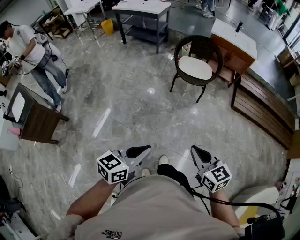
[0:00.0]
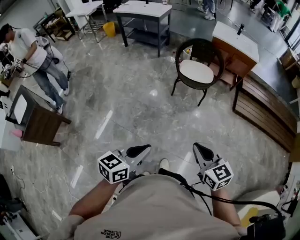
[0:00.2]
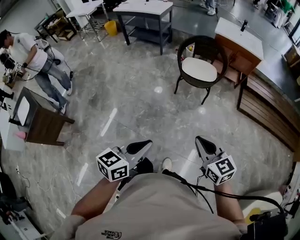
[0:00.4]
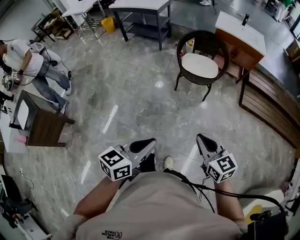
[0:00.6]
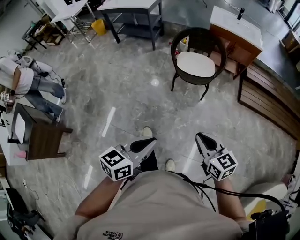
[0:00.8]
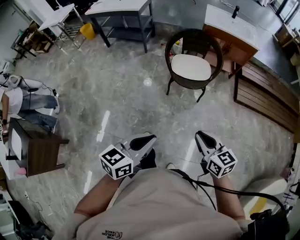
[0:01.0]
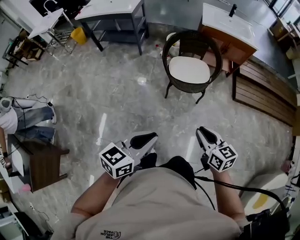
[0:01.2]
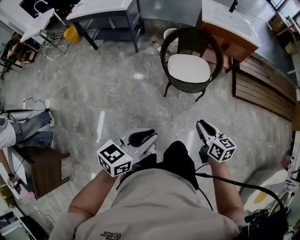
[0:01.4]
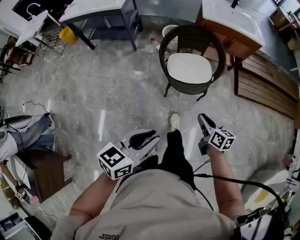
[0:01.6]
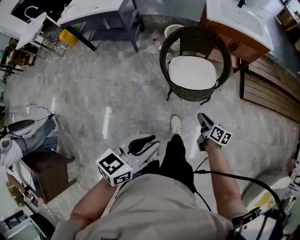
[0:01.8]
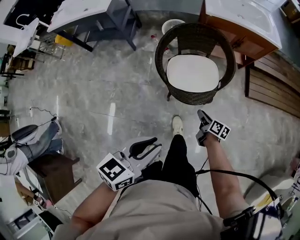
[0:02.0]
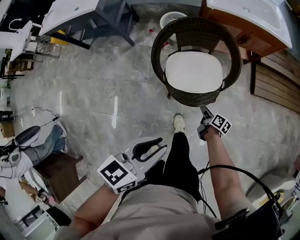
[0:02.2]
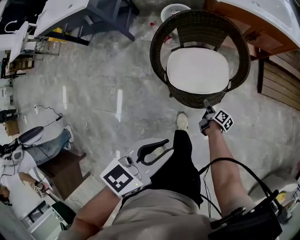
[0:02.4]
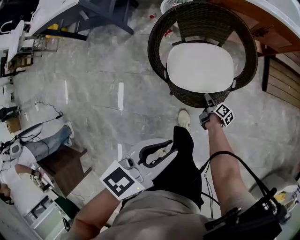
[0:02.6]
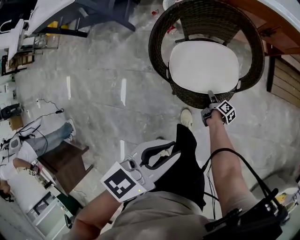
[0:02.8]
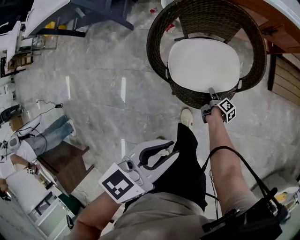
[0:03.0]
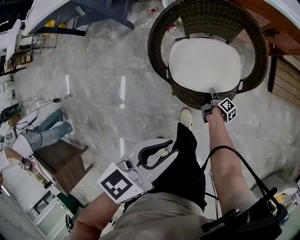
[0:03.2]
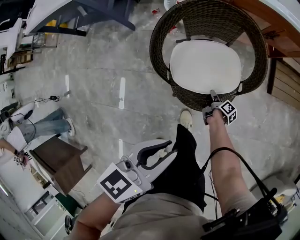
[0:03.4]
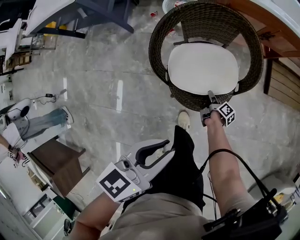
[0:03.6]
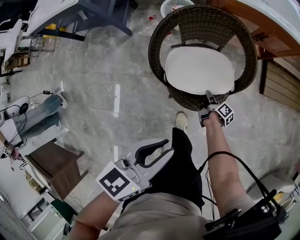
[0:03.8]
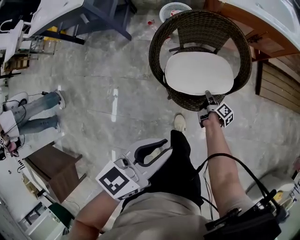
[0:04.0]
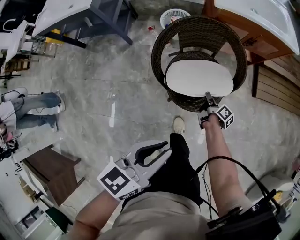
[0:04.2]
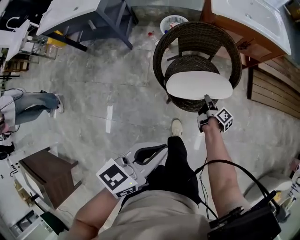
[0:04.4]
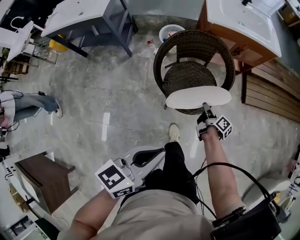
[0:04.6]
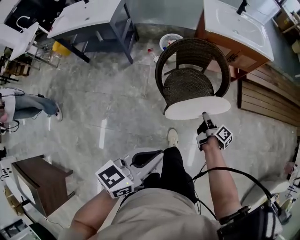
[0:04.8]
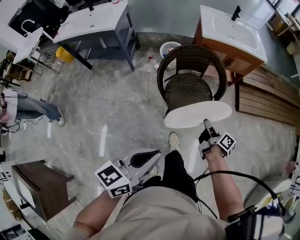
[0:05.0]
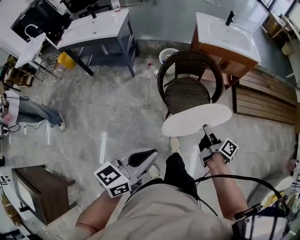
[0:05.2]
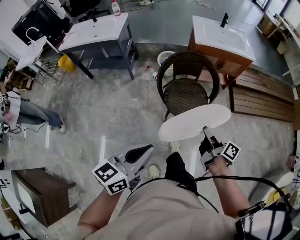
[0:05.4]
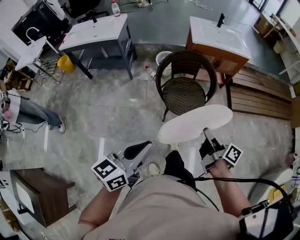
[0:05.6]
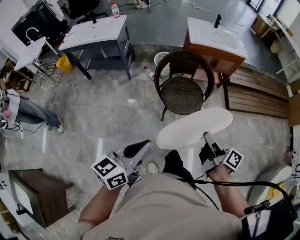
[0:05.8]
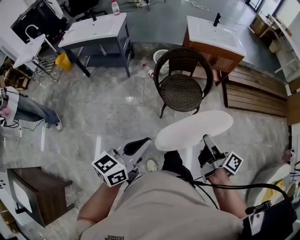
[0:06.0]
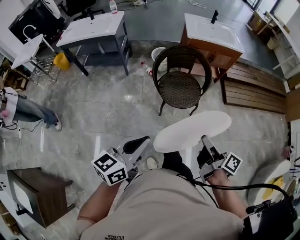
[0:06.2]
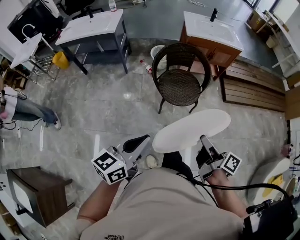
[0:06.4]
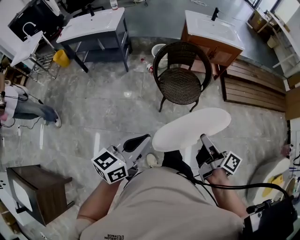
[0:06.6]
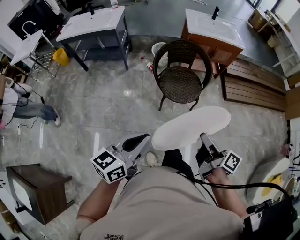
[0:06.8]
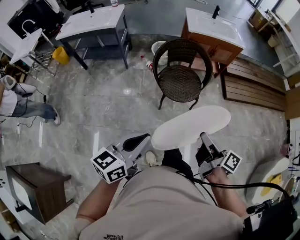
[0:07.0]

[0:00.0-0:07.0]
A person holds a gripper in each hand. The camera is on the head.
0:00.0 to 0:01.4: Both grippers are carried forward, some 40 cm. The right gripper turns by approximately 30 degrees.
0:01.4 to 0:02.8: The right gripper is displaced downward and forward by roughly 70 cm, rolls clockwise, seen from behind, by some 70 degrees, and opens, while the left gripper is displaced forward and downward by some 40 cm.
0:02.8 to 0:04.2: The right gripper heads upward, covering roughly 15 cm, and closes up, while the left gripper is displaced upward by some 5 cm.
0:04.2 to 0:05.6: The right gripper moves upward and backward, roughly 50 cm, and rotates roughly 20 degrees. Meanwhile the left gripper shifts roughly 30 cm backward and upward.
0:05.6 to 0:07.0: The right gripper moves backward, some 10 cm. The left gripper moves backward, about 5 cm.

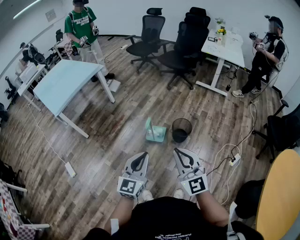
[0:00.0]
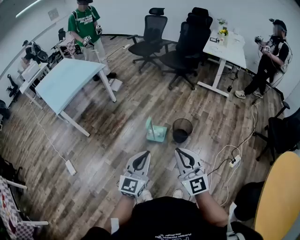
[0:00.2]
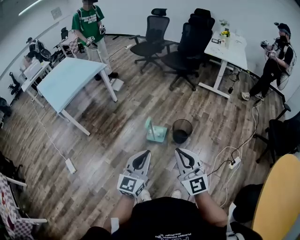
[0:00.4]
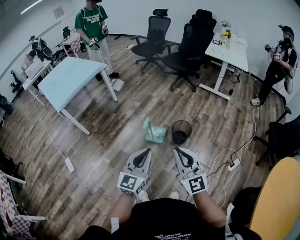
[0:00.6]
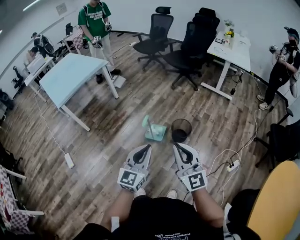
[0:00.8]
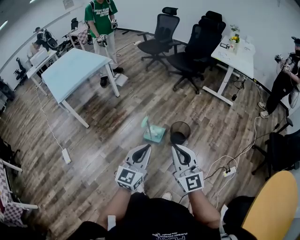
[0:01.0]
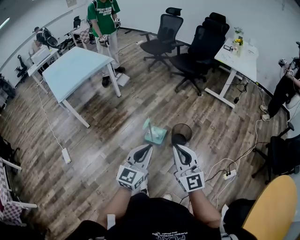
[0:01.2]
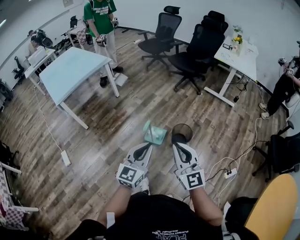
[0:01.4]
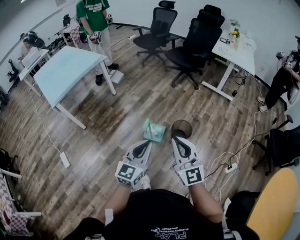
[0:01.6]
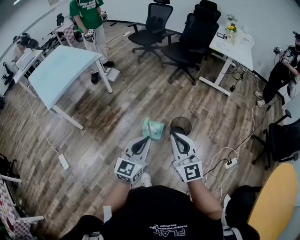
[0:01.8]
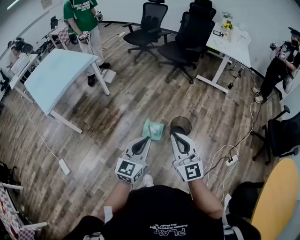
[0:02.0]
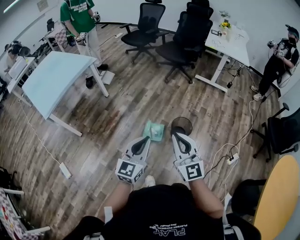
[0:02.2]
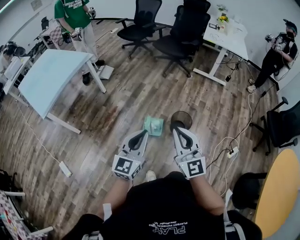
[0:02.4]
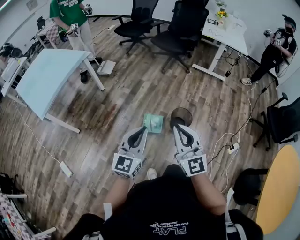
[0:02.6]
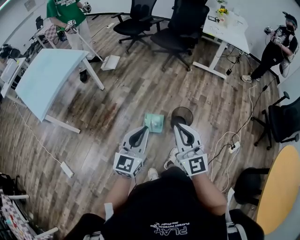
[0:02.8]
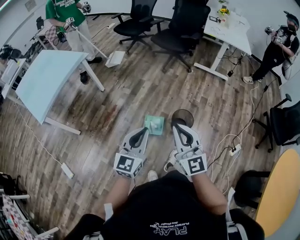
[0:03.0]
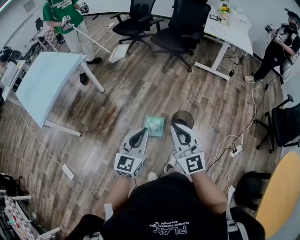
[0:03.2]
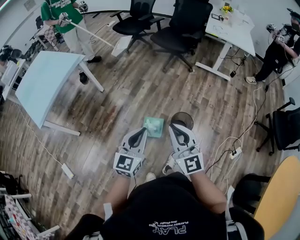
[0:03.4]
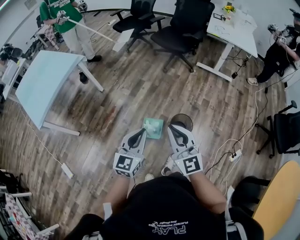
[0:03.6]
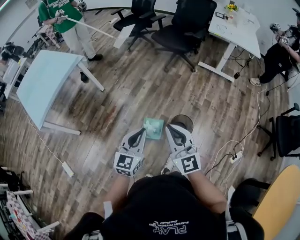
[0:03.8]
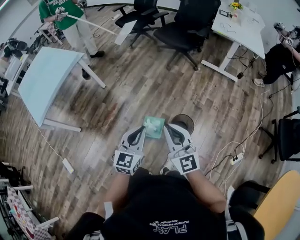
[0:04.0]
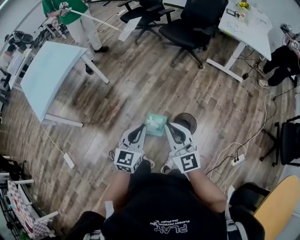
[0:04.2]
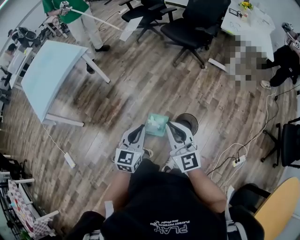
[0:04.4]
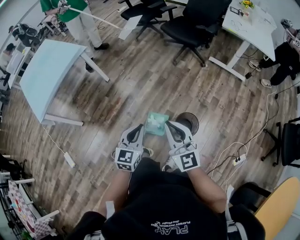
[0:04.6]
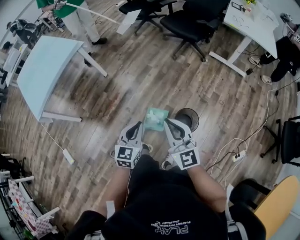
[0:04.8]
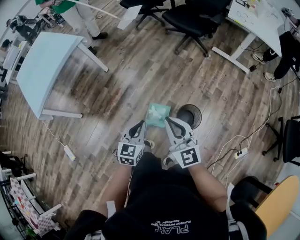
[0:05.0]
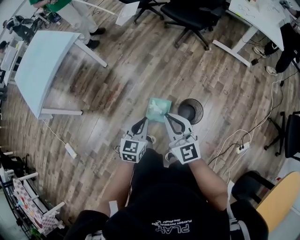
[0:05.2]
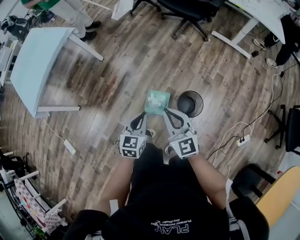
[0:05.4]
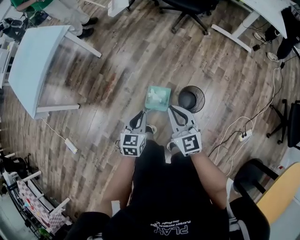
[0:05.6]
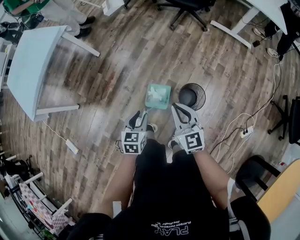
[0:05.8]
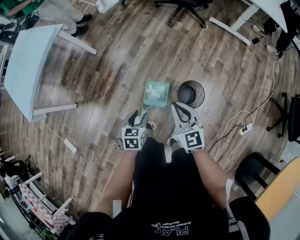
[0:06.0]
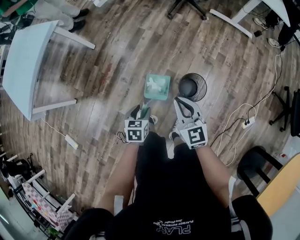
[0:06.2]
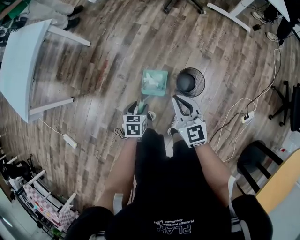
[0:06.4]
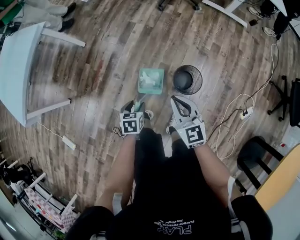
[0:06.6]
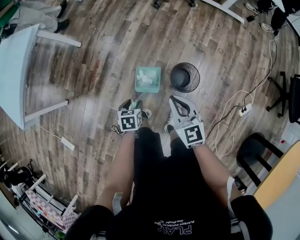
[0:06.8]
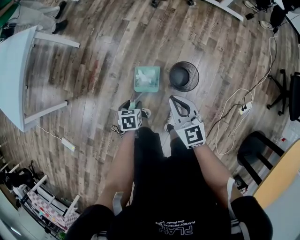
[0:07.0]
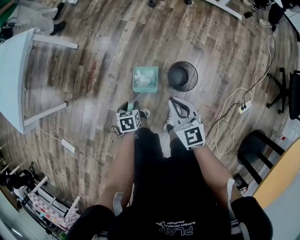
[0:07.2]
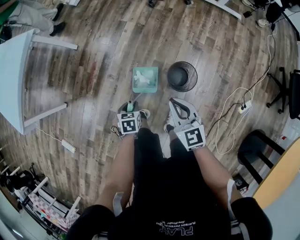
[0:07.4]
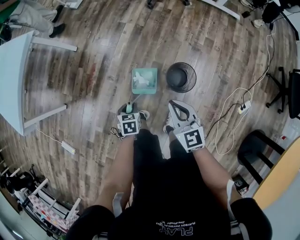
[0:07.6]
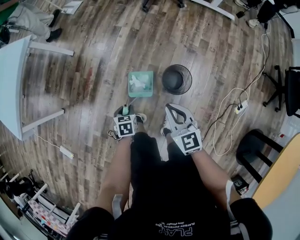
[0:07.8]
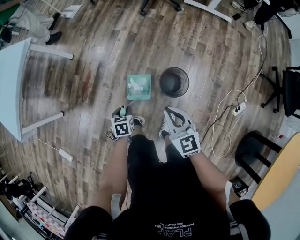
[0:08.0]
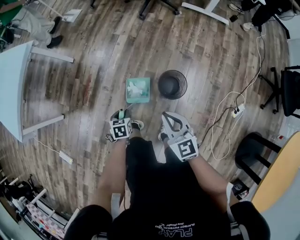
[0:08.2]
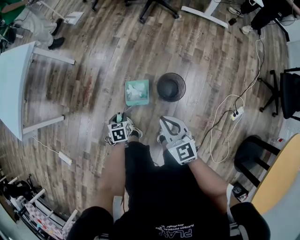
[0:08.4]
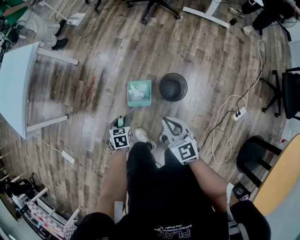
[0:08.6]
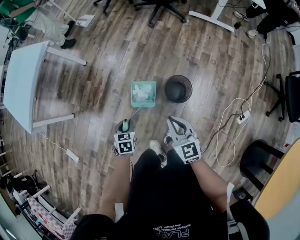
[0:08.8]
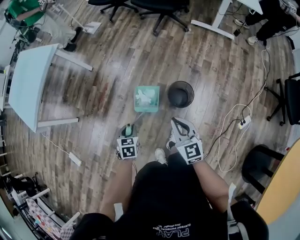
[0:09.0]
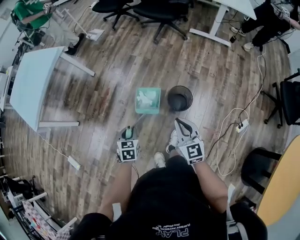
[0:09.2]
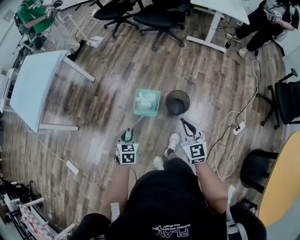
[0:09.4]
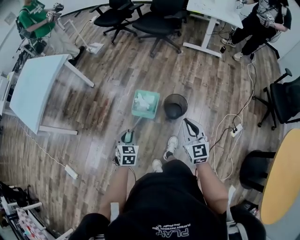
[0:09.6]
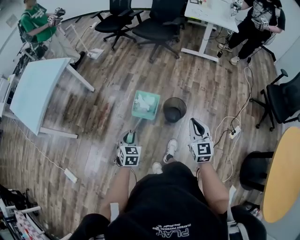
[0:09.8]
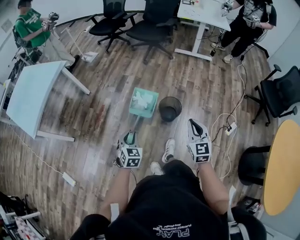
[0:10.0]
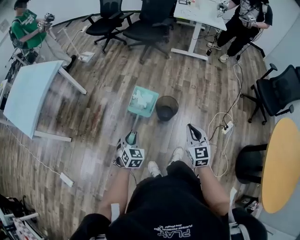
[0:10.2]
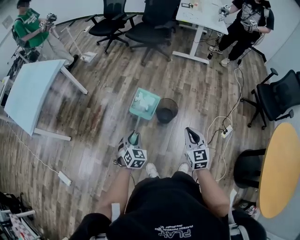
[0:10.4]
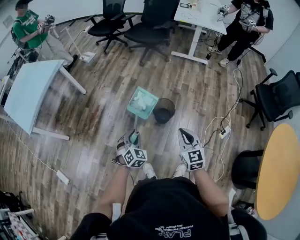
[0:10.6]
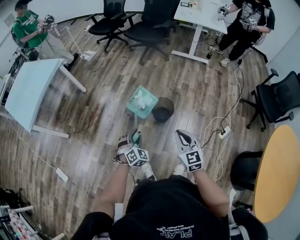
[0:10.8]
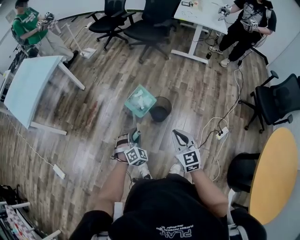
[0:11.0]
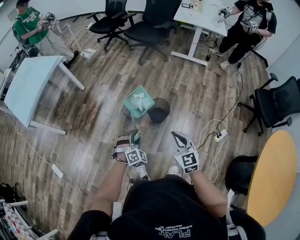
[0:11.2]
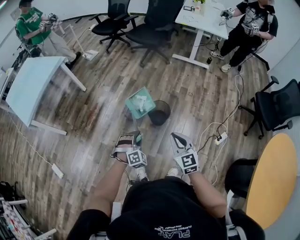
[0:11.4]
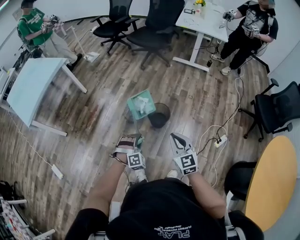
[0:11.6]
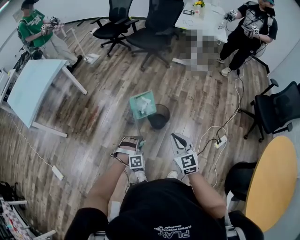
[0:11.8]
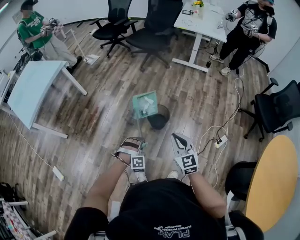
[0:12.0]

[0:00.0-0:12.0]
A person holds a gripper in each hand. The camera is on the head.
0:00.0 to 0:01.6: The two grippers go about 10 cm forward.
0:01.6 to 0:03.0: The grippers both shift forward and to the left by about 15 cm.
0:03.0 to 0:04.4: The right gripper heads forward, covering about 15 cm. The left gripper moves forward and downward, roughly 20 cm.
0:04.4 to 0:06.0: Both grippers move downward, approximately 20 cm. The left gripper angles its fingers downward, by about 30 degrees, and opens its fingers; the right gripper rotates approximately 20 degrees.
0:06.0 to 0:07.6: The right gripper goes about 5 cm downward; the left gripper travels downward by some 10 cm.
0:07.6 to 0:09.0: The left gripper is displaced upward and backward by some 15 cm. Meanwhile the right gripper moves backward and upward, about 10 cm.
0:09.0 to 0:10.4: The right gripper is displaced backward, upward and to the right by roughly 20 cm; the left gripper moves backward and upward, roughly 15 cm, and swivels about 40 degrees.
0:10.4 to 0:12.0: The left gripper goes approximately 15 cm to the right and downward, and rolls clockwise, seen from behind, by about 60 degrees.

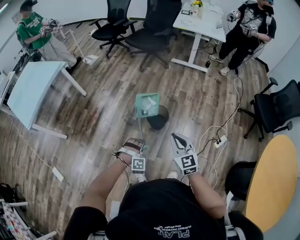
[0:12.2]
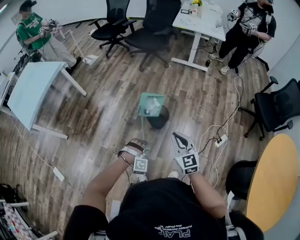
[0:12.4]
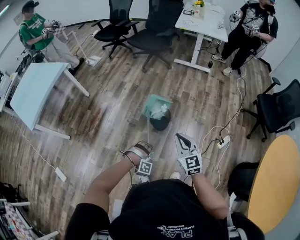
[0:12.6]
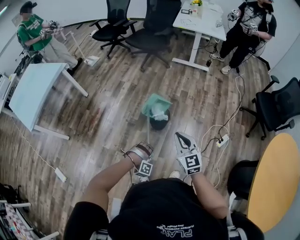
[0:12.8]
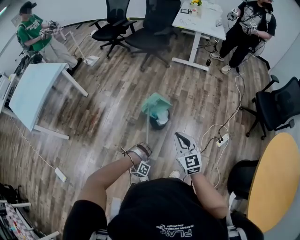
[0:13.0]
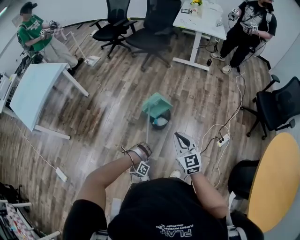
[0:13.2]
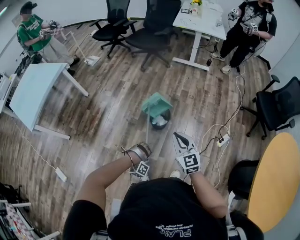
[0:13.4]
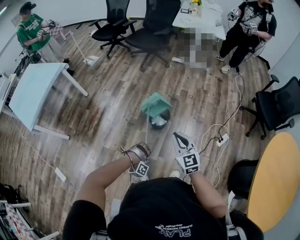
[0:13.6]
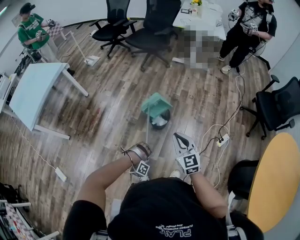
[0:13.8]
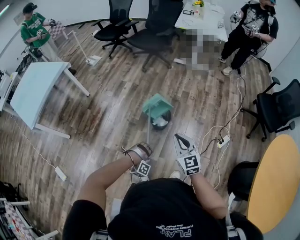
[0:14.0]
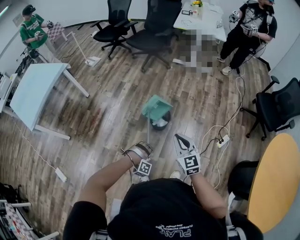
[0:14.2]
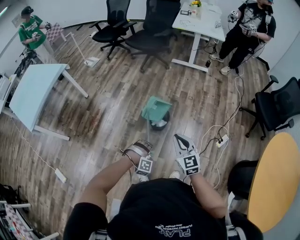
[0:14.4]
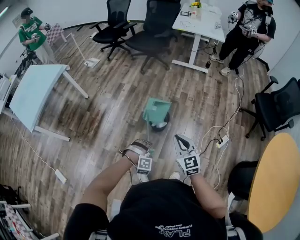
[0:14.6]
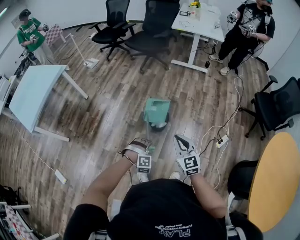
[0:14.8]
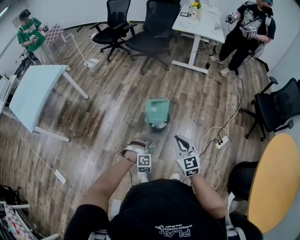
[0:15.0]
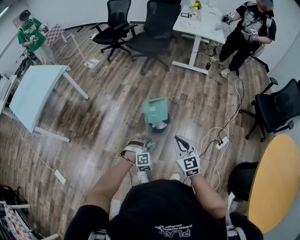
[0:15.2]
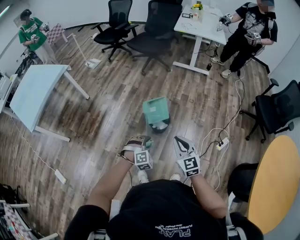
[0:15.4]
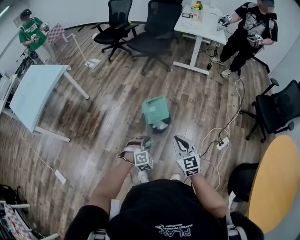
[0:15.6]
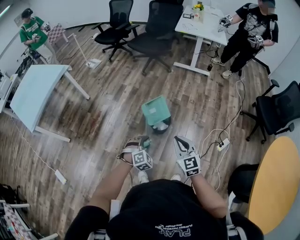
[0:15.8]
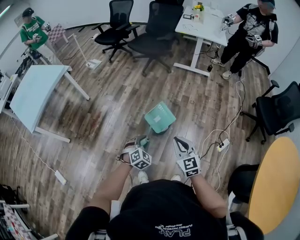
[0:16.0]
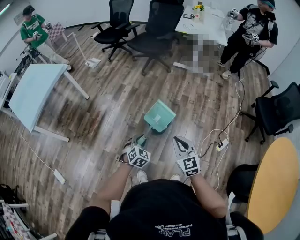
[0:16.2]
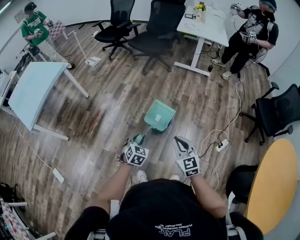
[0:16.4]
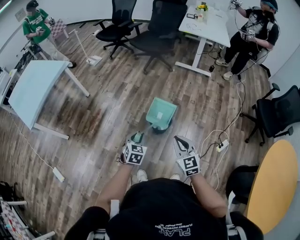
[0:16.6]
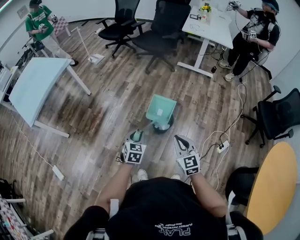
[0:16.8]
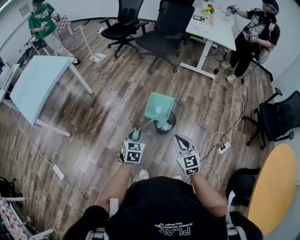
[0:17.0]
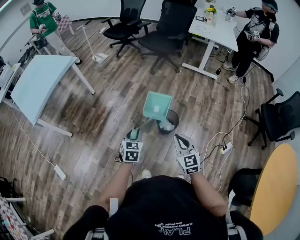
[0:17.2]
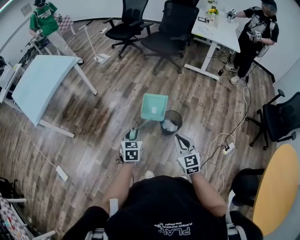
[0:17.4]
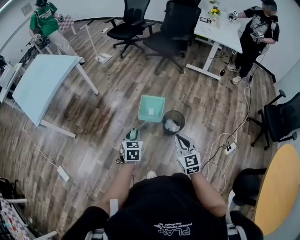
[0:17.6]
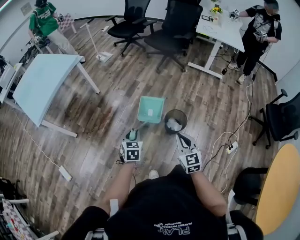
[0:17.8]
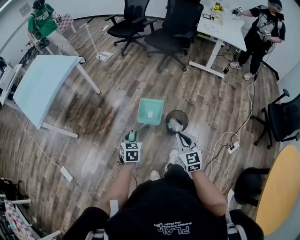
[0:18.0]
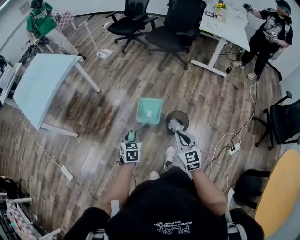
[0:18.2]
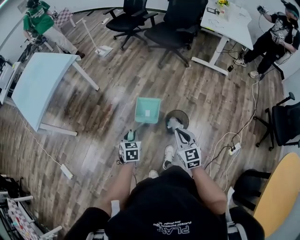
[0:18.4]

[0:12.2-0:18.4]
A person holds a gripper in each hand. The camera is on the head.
0:12.2 to 0:13.8: The left gripper is displaced downward by roughly 5 cm, and changes its angle by roughly 40 degrees.
0:13.8 to 0:15.4: The left gripper is displaced upward and forward by approximately 10 cm, and rotates around the line of its fingers by about 60 degrees, counterclockwise from behind.
0:15.4 to 0:16.8: The left gripper travels to the left, upward and forward by about 15 cm, and twists roughly 60 degrees counterclockwise, seen from behind.
0:16.8 to 0:18.4: The left gripper moves to the left and forward, some 20 cm. Meanwhile the right gripper heads forward and to the left, covering roughly 15 cm.
